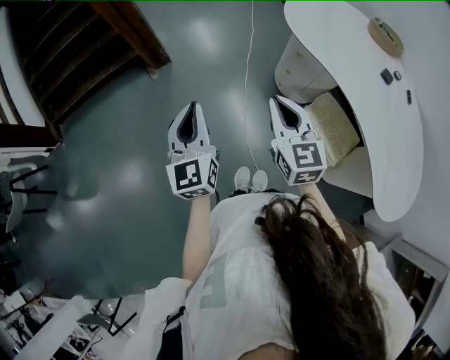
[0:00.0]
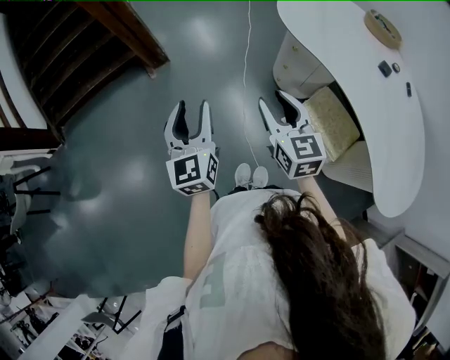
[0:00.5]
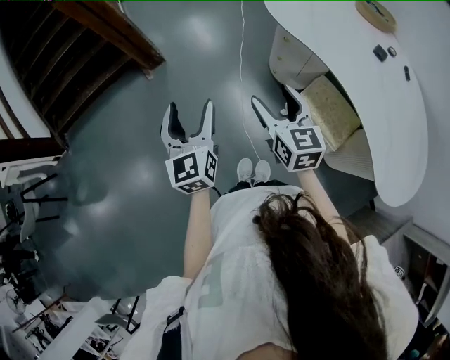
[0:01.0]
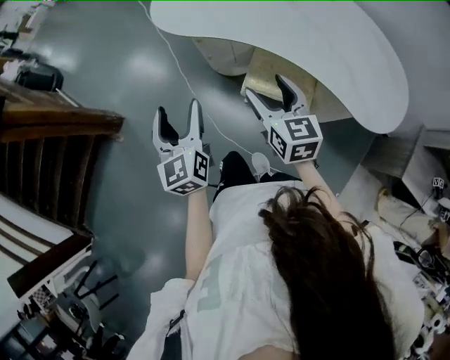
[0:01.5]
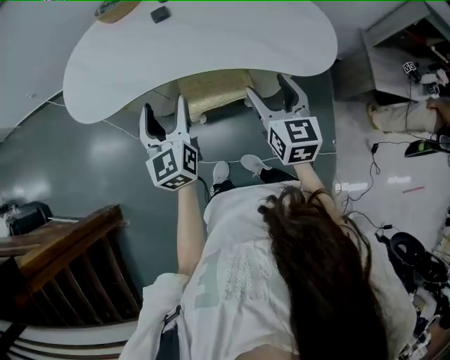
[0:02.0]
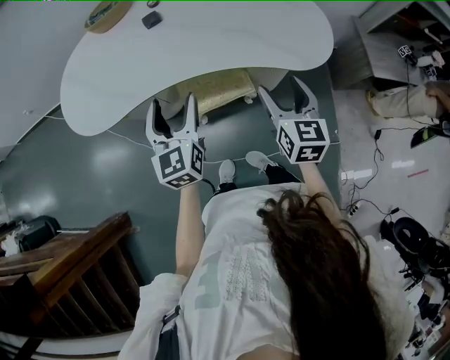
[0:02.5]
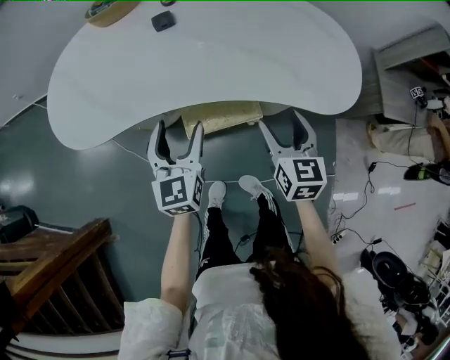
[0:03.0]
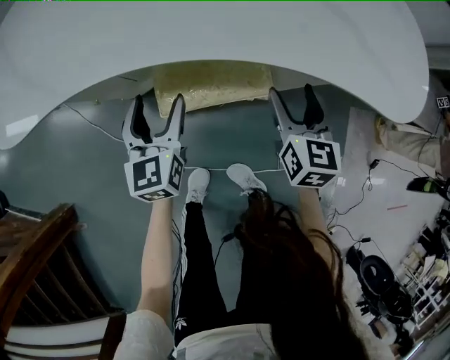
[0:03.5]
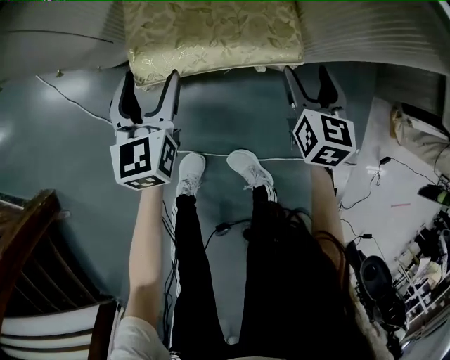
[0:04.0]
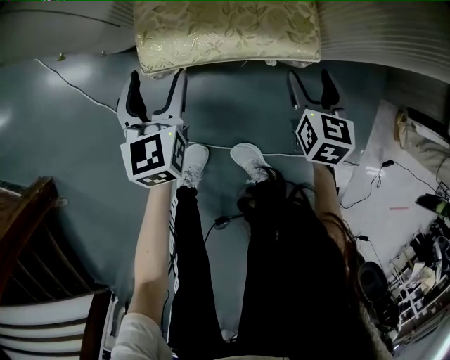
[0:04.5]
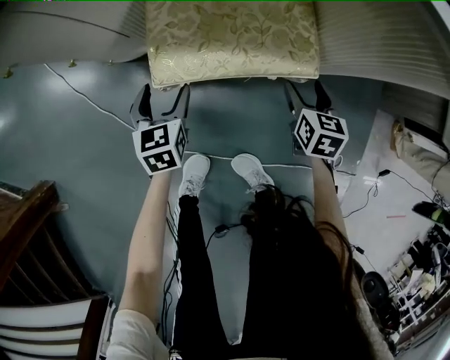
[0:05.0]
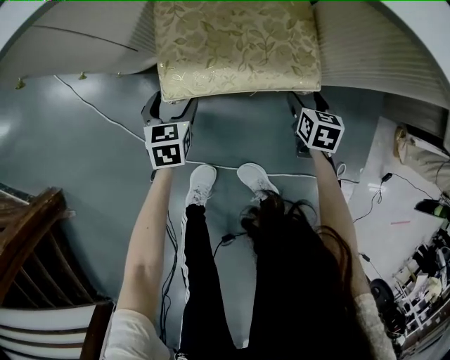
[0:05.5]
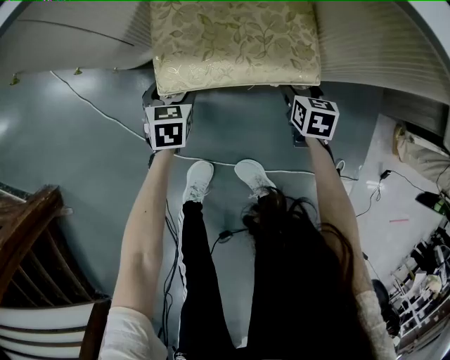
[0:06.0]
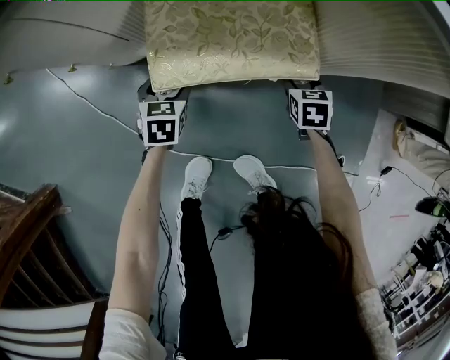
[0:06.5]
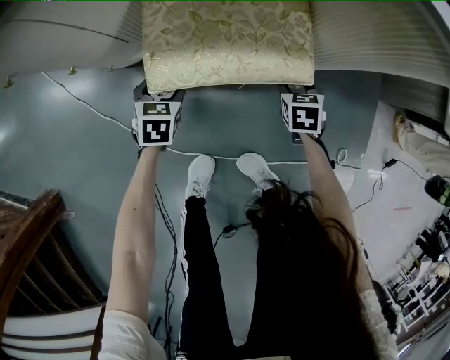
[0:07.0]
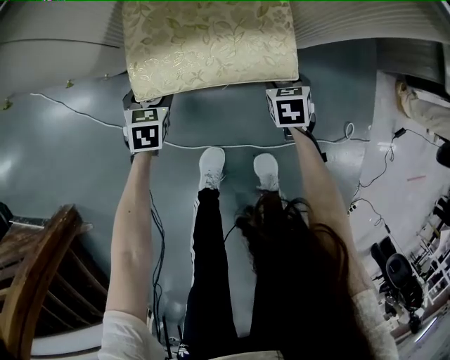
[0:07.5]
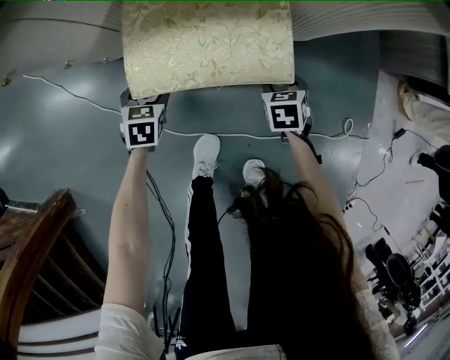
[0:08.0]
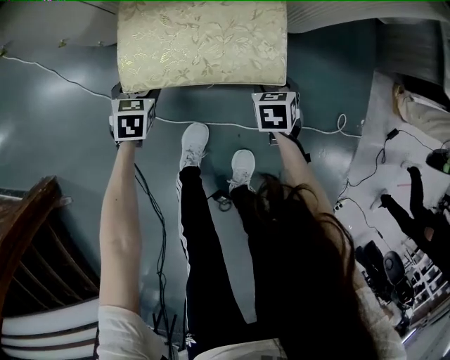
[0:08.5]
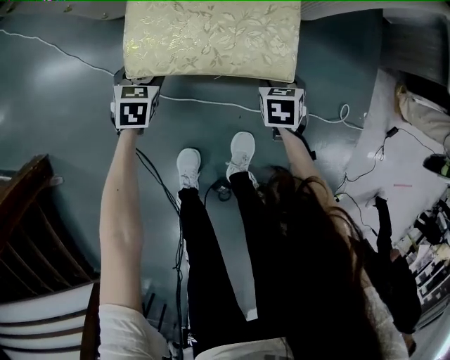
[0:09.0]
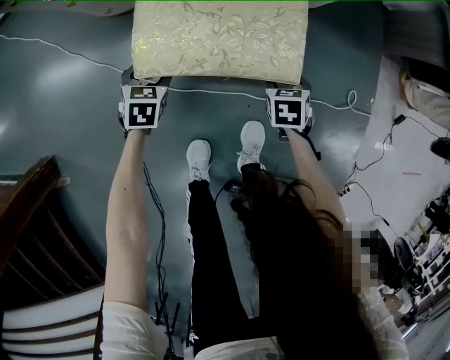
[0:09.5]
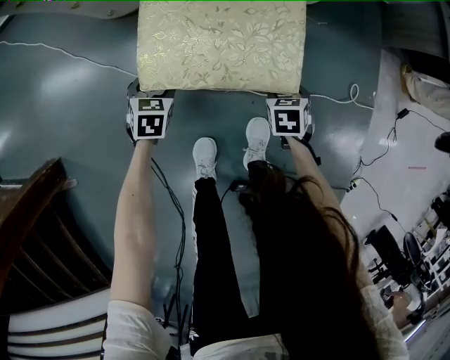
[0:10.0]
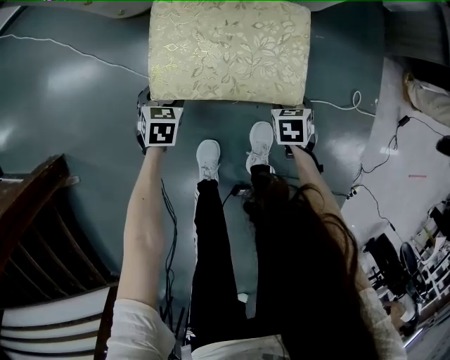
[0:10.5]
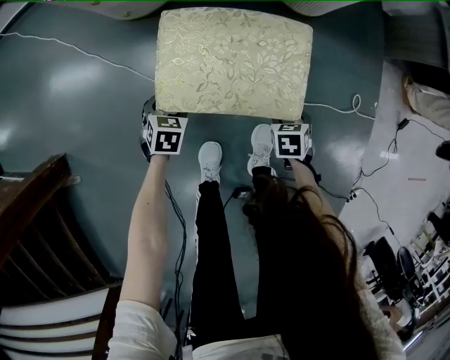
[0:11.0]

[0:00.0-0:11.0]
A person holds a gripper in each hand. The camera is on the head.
0:00.0 to 0:02.0: Both grippers are carried roughly 40 cm. The right gripper rotates roughly 70 degrees, and opens up. Meanwhile the left gripper changes its angle by some 60 degrees, and opens its fingers.
0:02.0 to 0:03.5: The two grippers go approximately 40 cm downward and forward.
0:03.5 to 0:05.5: The grippers both shift downward by roughly 35 cm. The right gripper swivels approximately 30 degrees. Meanwhile the left gripper changes its angle by about 30 degrees.
0:05.5 to 0:07.5: The right gripper turns by some 20 degrees.
0:07.5 to 0:09.0: The grippers stay close to where they were, moving slightly.
0:09.0 to 0:11.0: There are only small adjustments of the grippers.

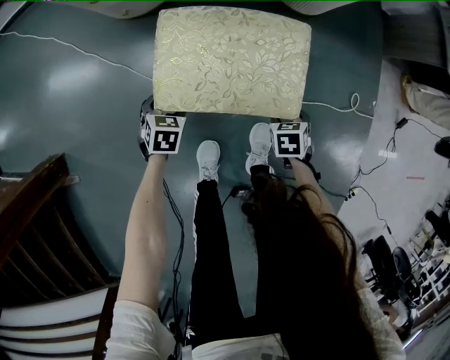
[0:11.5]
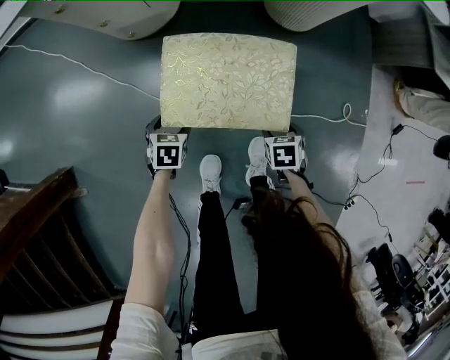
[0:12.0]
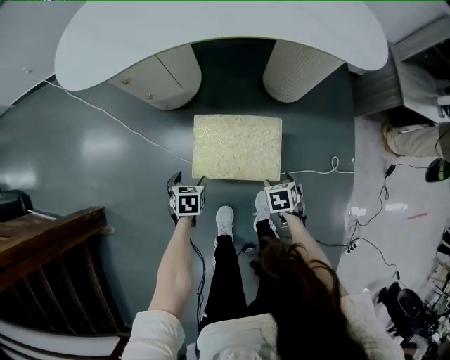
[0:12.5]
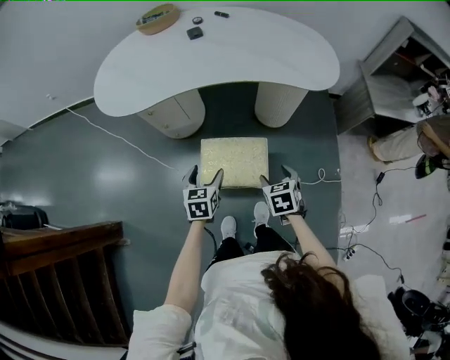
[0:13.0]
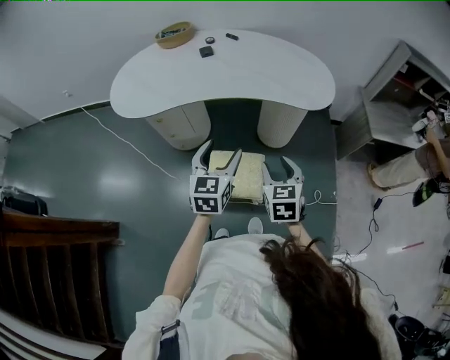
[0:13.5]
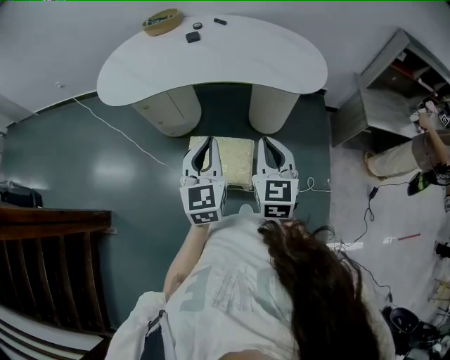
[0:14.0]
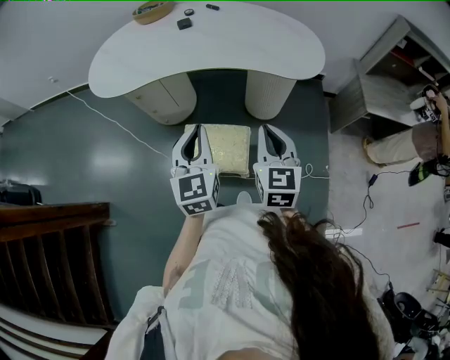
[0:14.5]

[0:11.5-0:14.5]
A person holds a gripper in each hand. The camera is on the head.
0:11.5 to 0:13.0: The two grippers go approximately 50 cm upward. The left gripper swivels approximately 30 degrees.
0:13.0 to 0:14.5: The left gripper shifts approximately 25 cm upward and to the right, swivels approximately 30 degrees, and closes up, while the right gripper shifts roughly 20 cm upward, tilts its fingers roughly 40 degrees upward, and closes up.

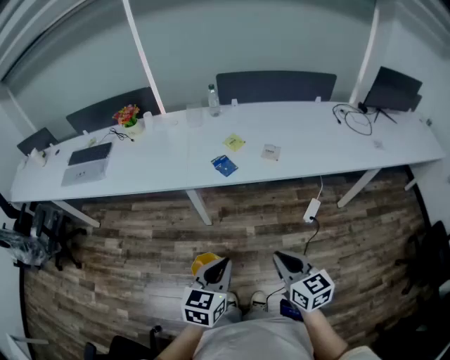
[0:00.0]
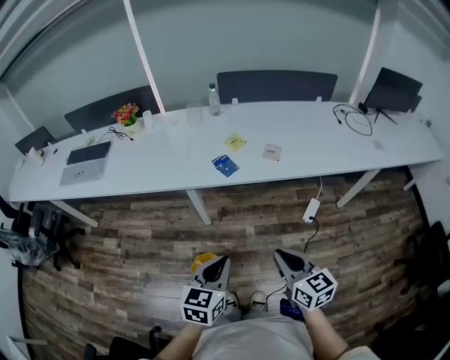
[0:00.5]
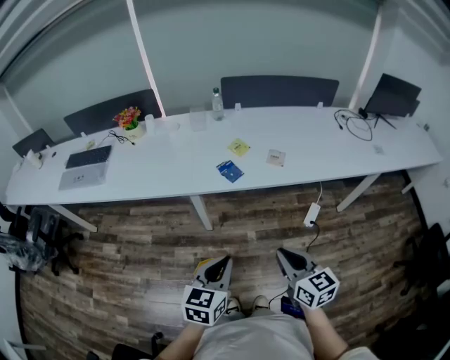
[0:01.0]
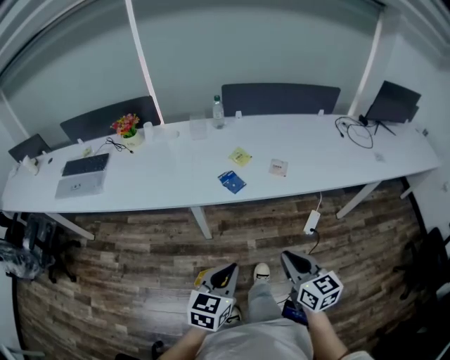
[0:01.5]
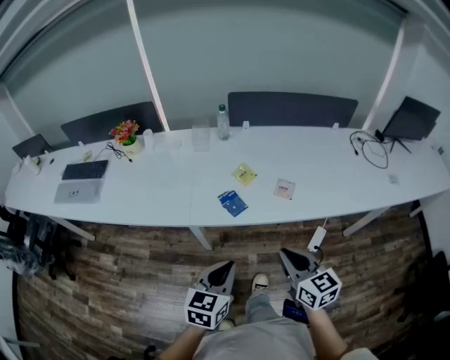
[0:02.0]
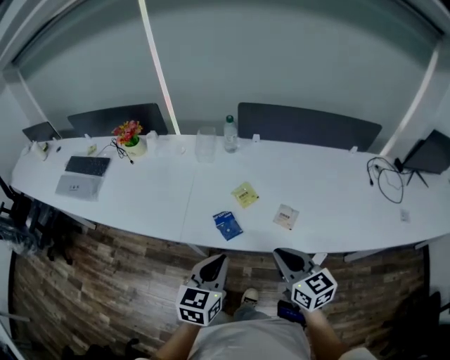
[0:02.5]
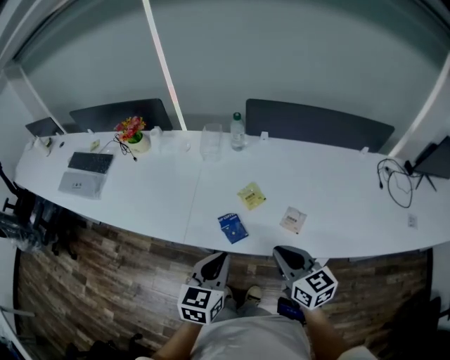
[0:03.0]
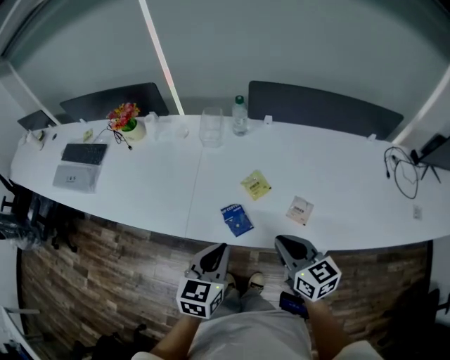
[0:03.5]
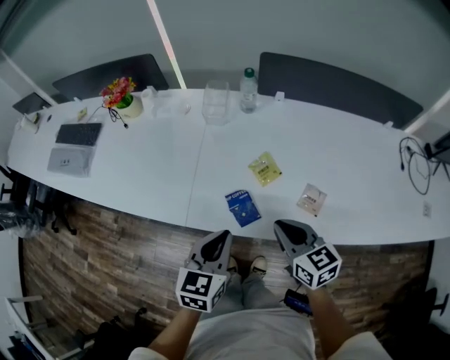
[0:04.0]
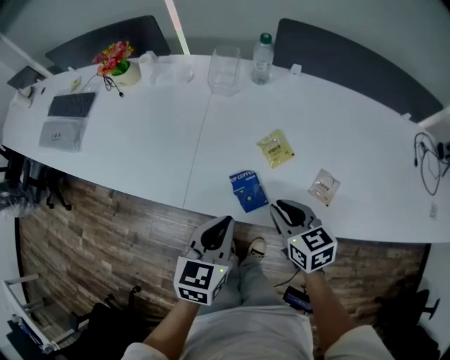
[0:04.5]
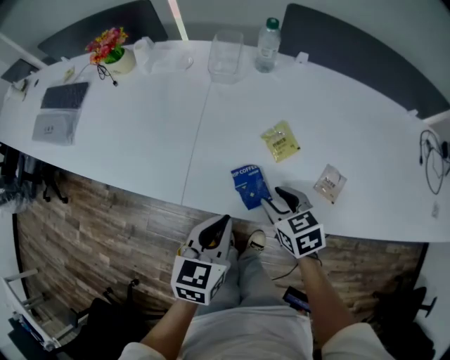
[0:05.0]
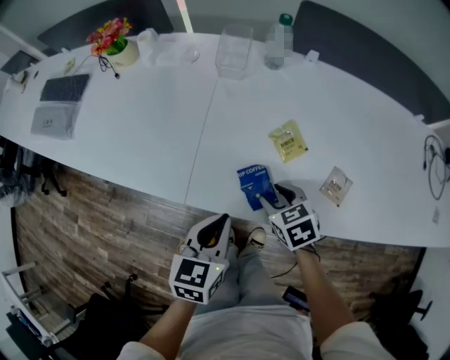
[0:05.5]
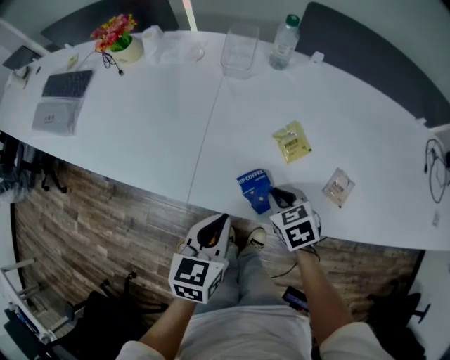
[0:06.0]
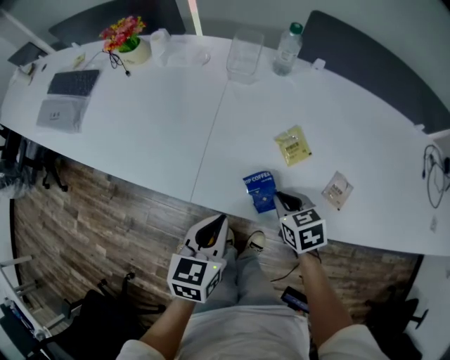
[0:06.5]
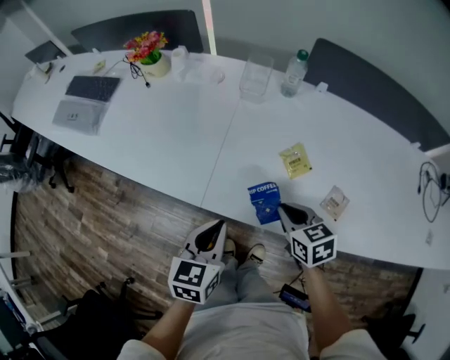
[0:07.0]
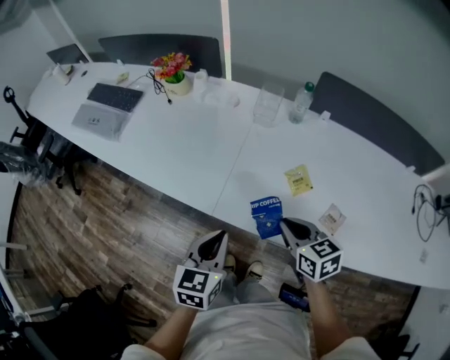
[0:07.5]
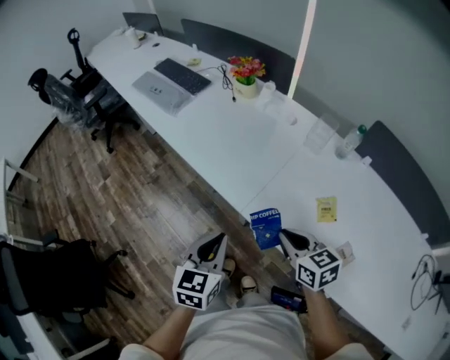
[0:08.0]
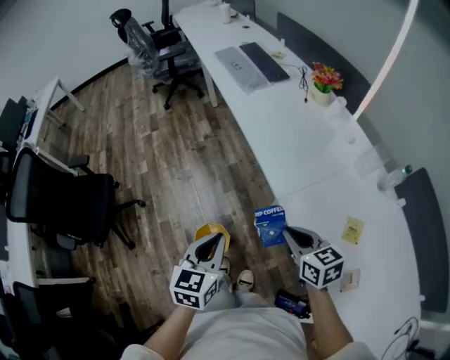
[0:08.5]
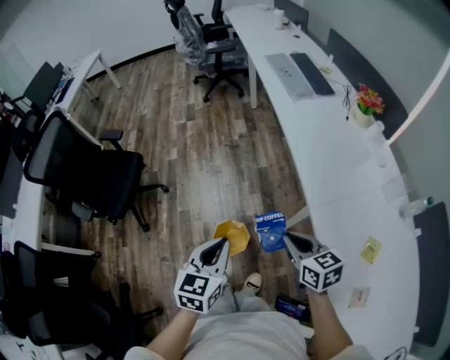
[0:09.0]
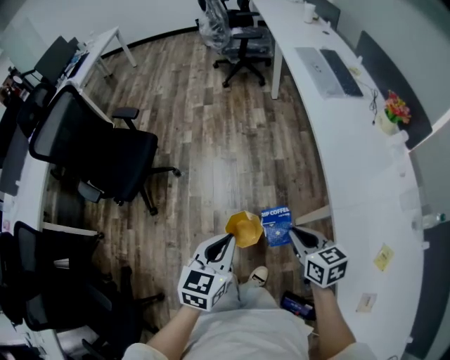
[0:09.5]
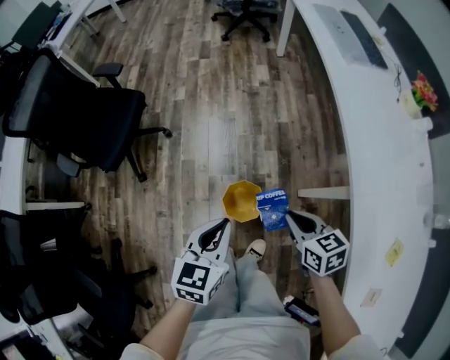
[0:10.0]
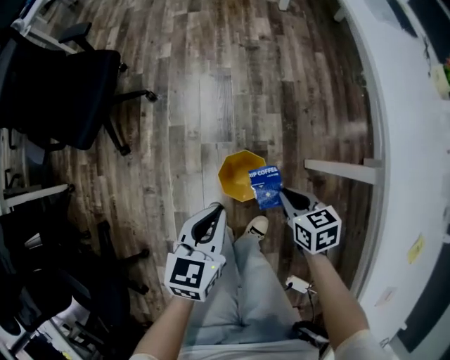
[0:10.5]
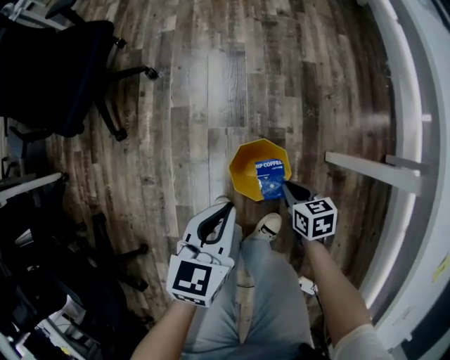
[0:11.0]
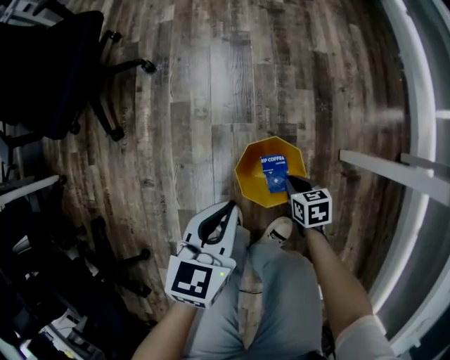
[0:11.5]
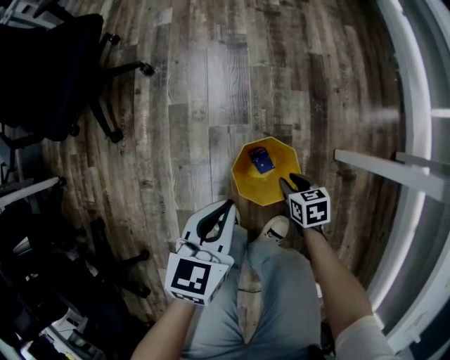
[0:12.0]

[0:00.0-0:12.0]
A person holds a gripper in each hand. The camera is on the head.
0:00.0 to 0:02.0: Both grippers travel together forward, about 20 cm.
0:02.0 to 0:04.0: Both grippers travel together forward, approximately 20 cm.
0:04.0 to 0:06.0: The right gripper goes about 15 cm downward, tilts its fingers some 30 degrees downward, and opens and closes again, while the left gripper goes roughly 10 cm downward.
0:06.0 to 0:08.0: The right gripper shifts roughly 15 cm upward, and rotates roughly 30 degrees; the left gripper changes place by roughly 15 cm, and swivels roughly 30 degrees.
0:08.0 to 0:10.0: The right gripper moves approximately 35 cm, and changes its angle by approximately 40 degrees; the left gripper moves about 35 cm, and turns by some 40 degrees.
0:10.0 to 0:12.0: The right gripper travels downward by some 50 cm, and swivels about 20 degrees. The left gripper is displaced downward by about 30 cm.
